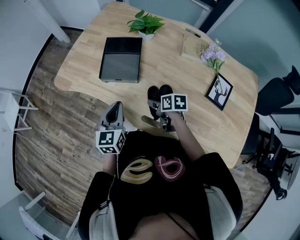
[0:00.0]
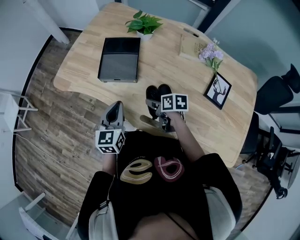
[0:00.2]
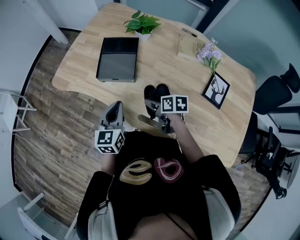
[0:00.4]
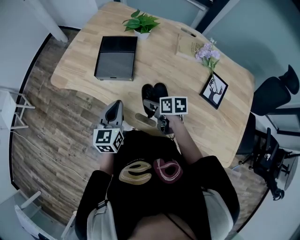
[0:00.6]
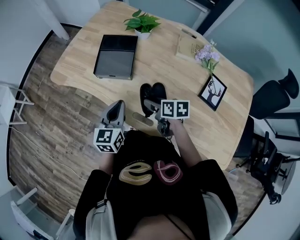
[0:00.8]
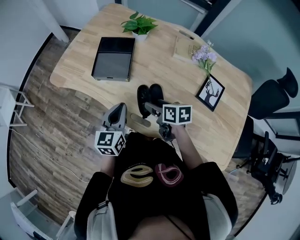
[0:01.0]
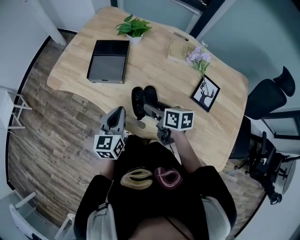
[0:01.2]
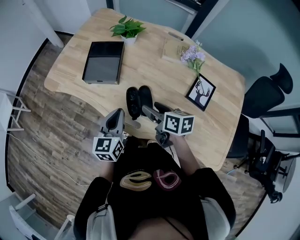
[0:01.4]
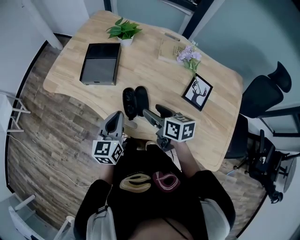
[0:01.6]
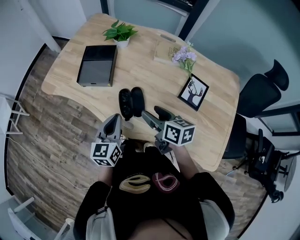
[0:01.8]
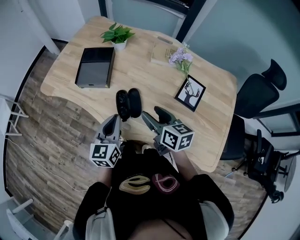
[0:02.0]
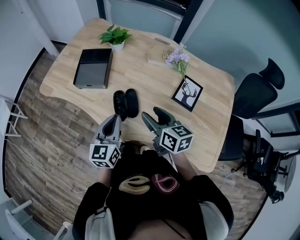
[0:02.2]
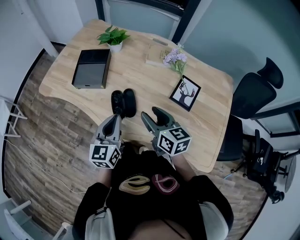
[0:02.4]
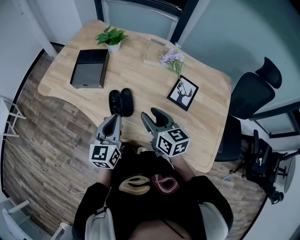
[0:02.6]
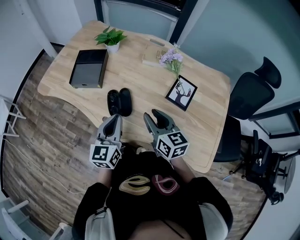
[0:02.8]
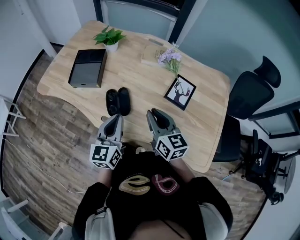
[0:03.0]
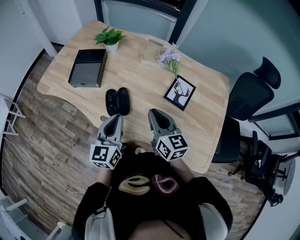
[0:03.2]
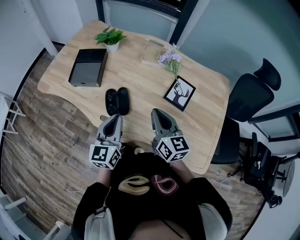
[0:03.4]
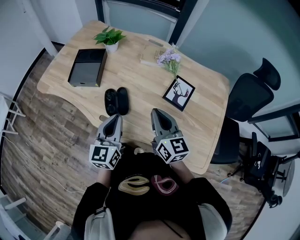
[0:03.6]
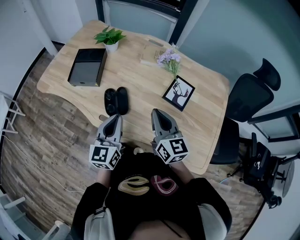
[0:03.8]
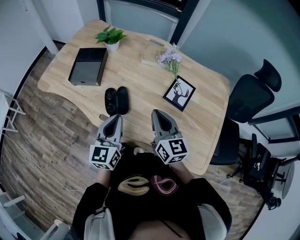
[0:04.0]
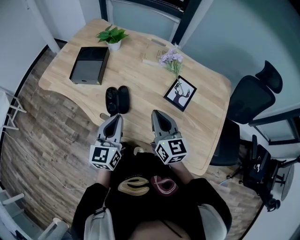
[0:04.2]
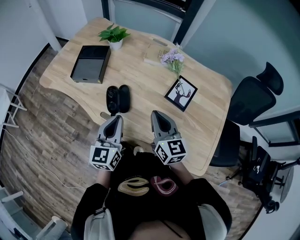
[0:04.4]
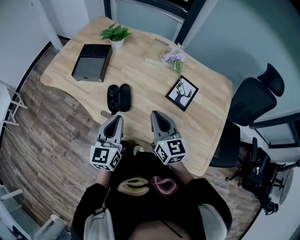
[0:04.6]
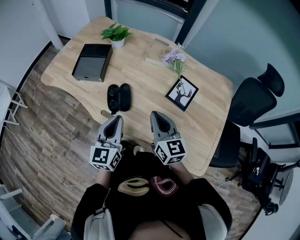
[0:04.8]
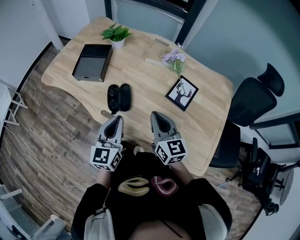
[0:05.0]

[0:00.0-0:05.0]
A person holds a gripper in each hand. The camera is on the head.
0:00.0 to 0:01.6: The right gripper is displaced upward, backward and to the right by roughly 20 cm, and swivels roughly 30 degrees, while the left gripper goes some 15 cm to the right and backward.
0:01.6 to 0:03.4: The right gripper travels to the right, upward and backward by approximately 15 cm, changes its angle by some 30 degrees, and closes, while the left gripper goes approximately 10 cm to the right and backward.
0:03.4 to 0:05.0: The grippers make only small movements.

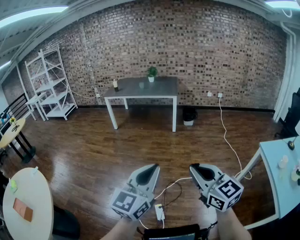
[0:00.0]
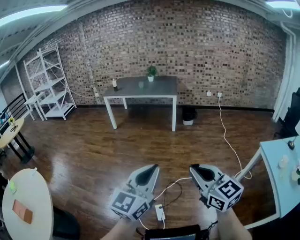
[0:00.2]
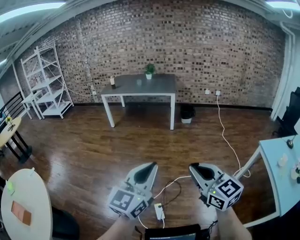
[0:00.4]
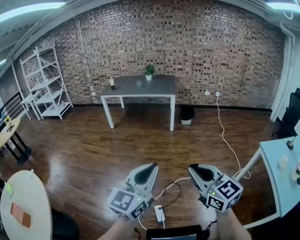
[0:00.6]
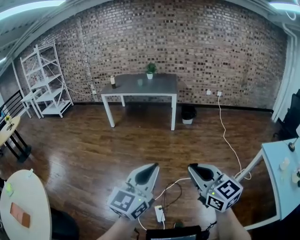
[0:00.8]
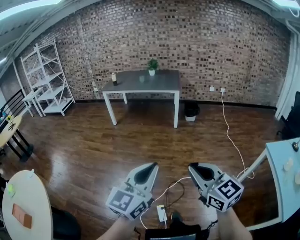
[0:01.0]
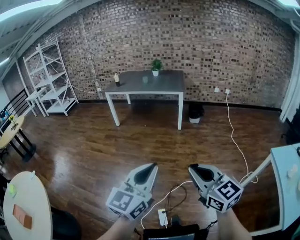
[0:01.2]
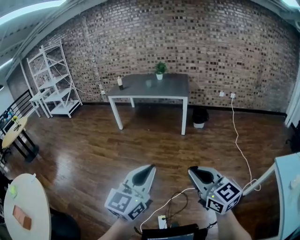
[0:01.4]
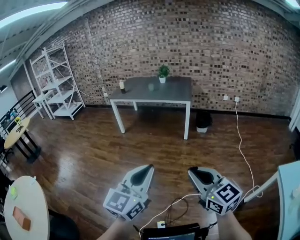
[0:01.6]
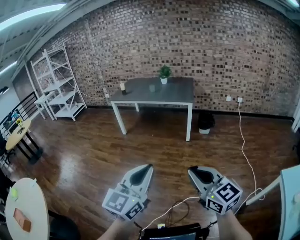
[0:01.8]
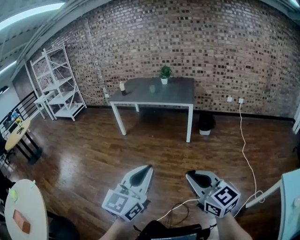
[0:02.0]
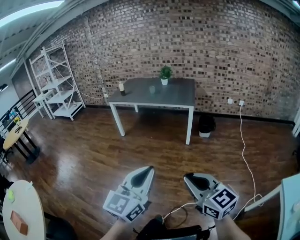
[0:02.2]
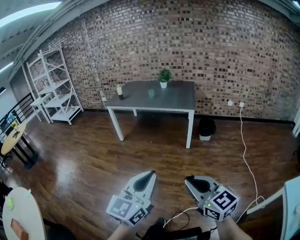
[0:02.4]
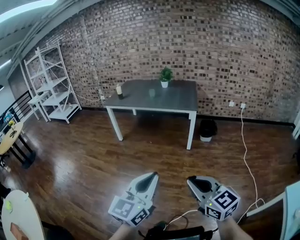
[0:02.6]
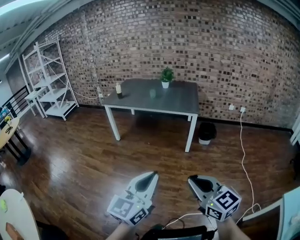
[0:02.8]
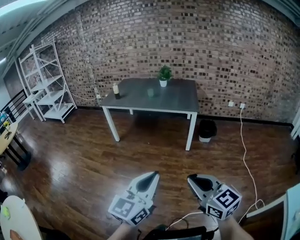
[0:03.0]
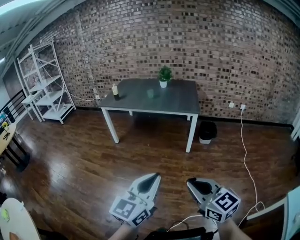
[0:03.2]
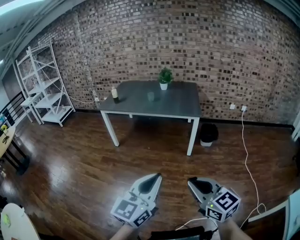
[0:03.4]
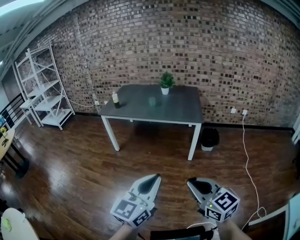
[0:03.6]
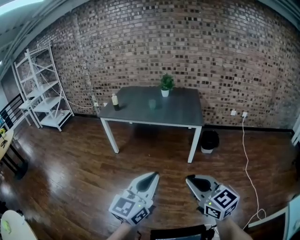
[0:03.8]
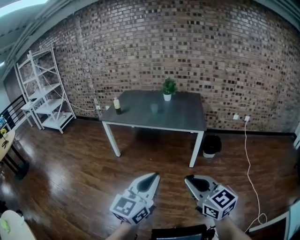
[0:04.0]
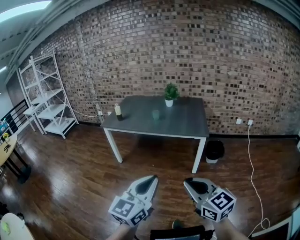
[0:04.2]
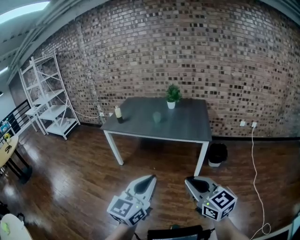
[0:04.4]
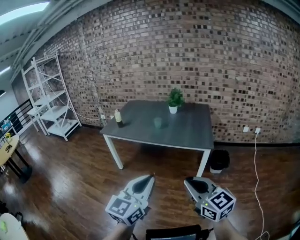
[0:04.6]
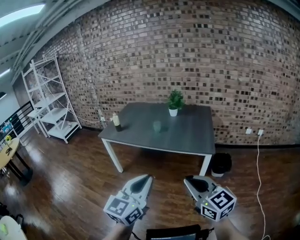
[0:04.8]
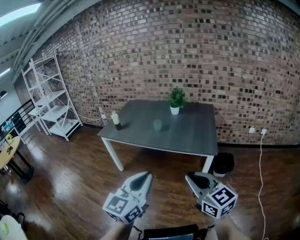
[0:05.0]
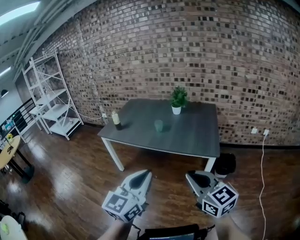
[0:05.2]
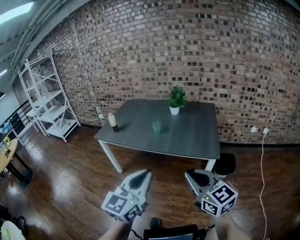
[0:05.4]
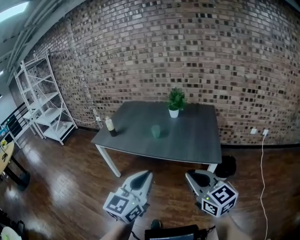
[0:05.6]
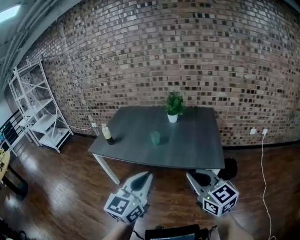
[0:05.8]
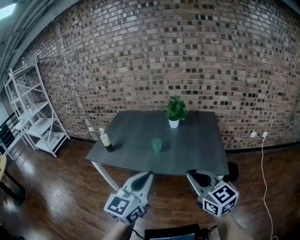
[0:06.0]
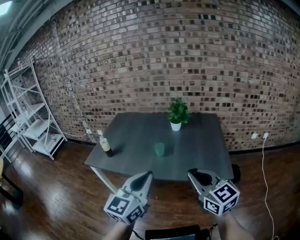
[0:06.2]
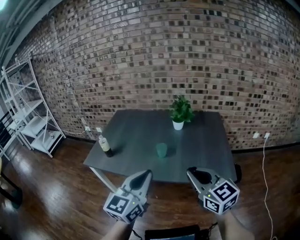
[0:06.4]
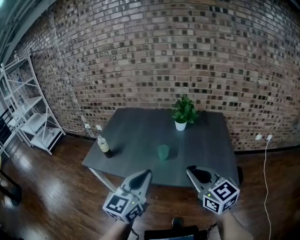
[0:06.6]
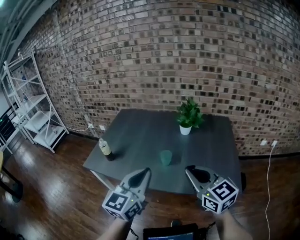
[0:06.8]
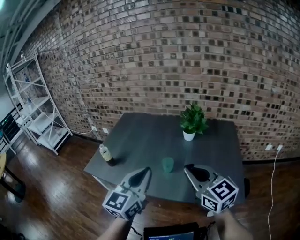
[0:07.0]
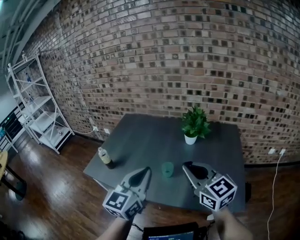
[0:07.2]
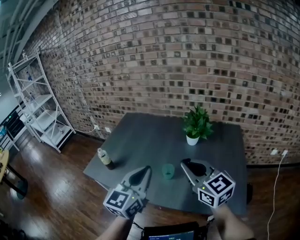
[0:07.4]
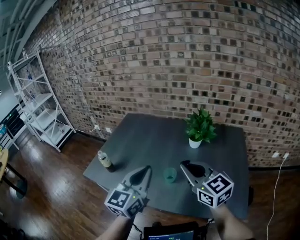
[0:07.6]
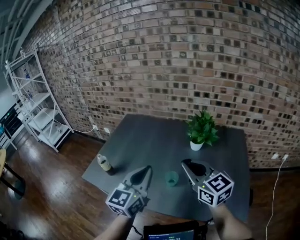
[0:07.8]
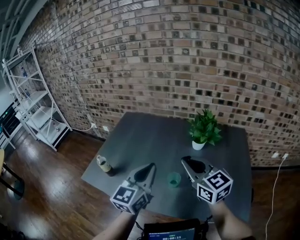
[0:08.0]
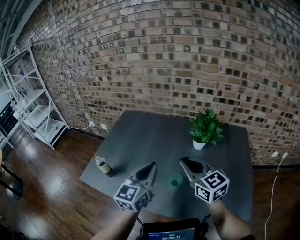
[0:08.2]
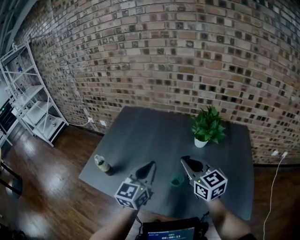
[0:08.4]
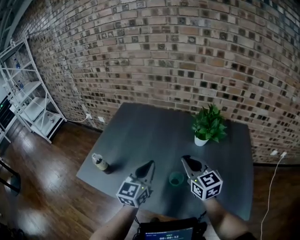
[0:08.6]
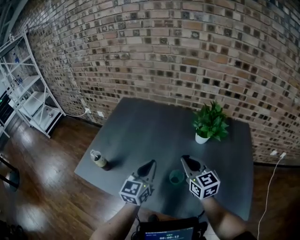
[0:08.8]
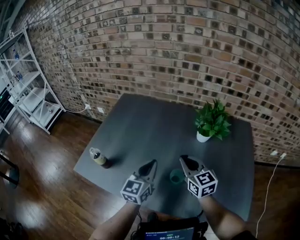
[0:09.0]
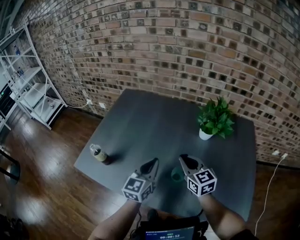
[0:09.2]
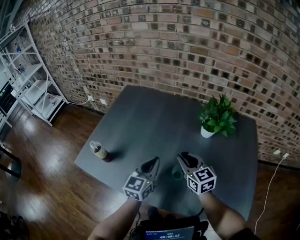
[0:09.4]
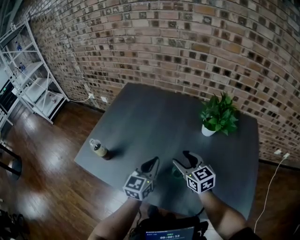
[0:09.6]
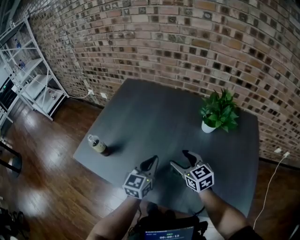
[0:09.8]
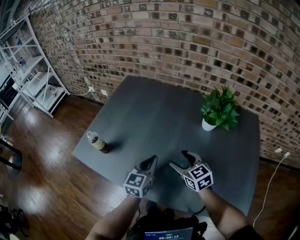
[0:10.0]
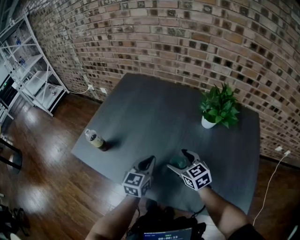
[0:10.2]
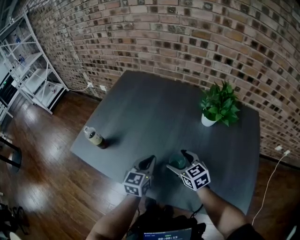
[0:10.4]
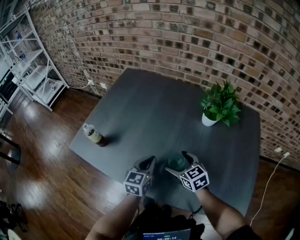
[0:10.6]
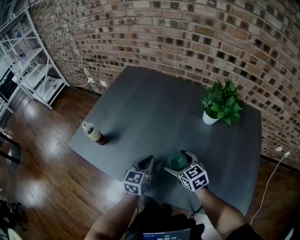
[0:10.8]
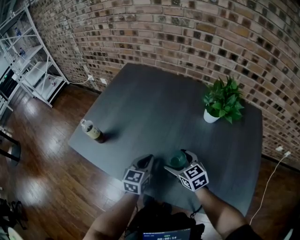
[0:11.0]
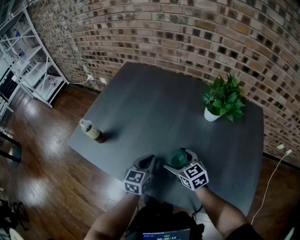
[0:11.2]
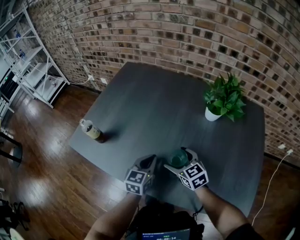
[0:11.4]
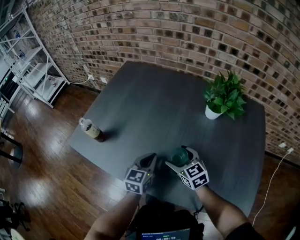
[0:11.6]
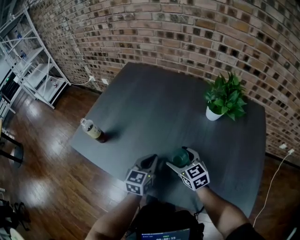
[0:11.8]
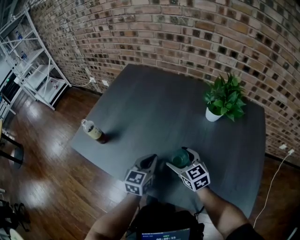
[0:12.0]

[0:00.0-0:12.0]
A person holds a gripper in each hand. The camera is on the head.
0:00.0 to 0:01.6: Both grippers travel together forward, some 25 cm.
0:01.6 to 0:03.0: The grippers both shift forward by approximately 25 cm.
0:03.0 to 0:04.4: Both grippers move forward, roughly 25 cm.
0:04.4 to 0:06.0: Both grippers are carried forward, some 40 cm.
0:06.0 to 0:07.6: The grippers both shift forward by roughly 35 cm.
0:07.6 to 0:09.0: Both grippers travel together downward and forward, approximately 20 cm.
0:09.0 to 0:10.4: Both grippers move downward, some 10 cm. The right gripper rotates roughly 20 degrees, and opens up.
0:10.4 to 0:12.0: The grippers move only a little.

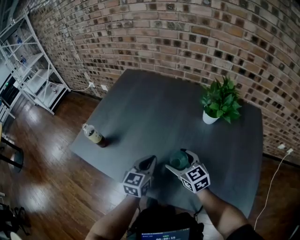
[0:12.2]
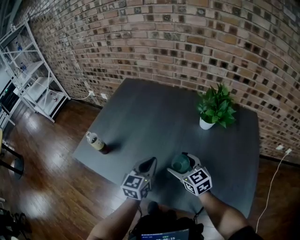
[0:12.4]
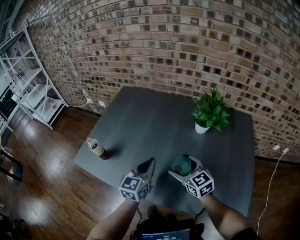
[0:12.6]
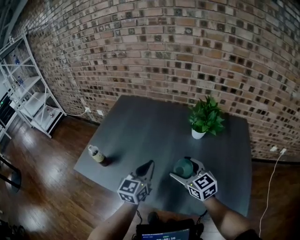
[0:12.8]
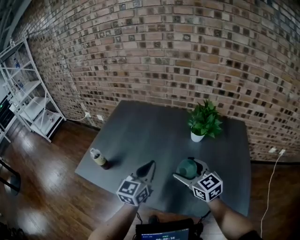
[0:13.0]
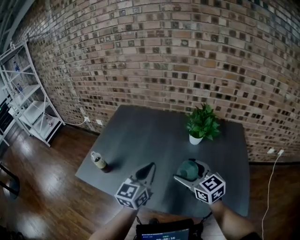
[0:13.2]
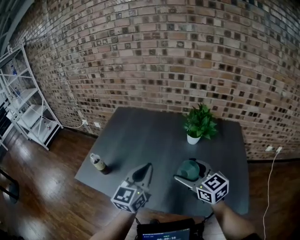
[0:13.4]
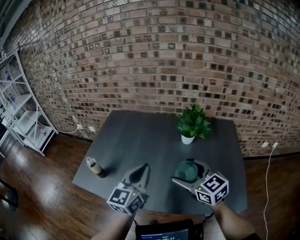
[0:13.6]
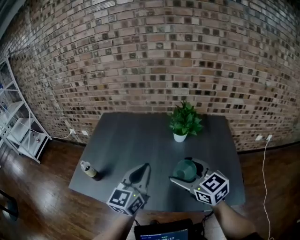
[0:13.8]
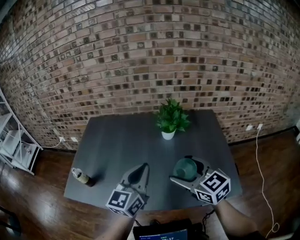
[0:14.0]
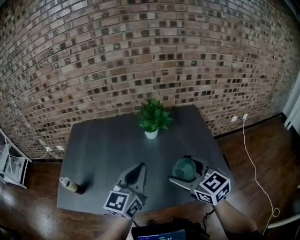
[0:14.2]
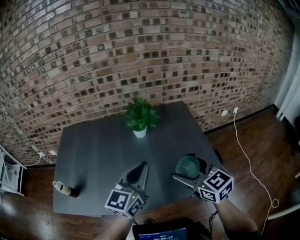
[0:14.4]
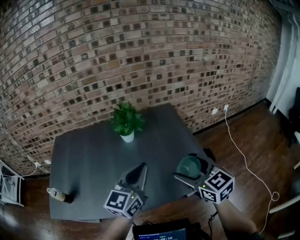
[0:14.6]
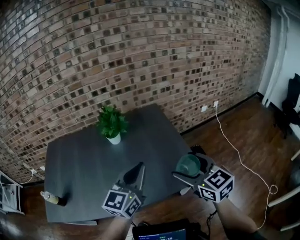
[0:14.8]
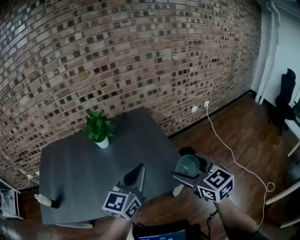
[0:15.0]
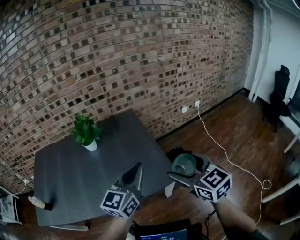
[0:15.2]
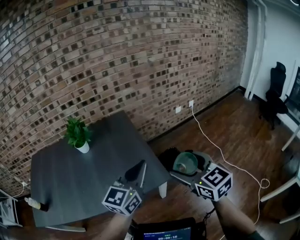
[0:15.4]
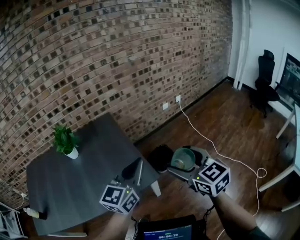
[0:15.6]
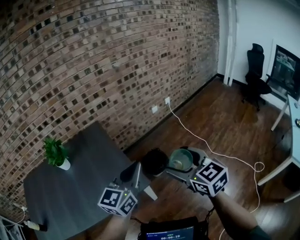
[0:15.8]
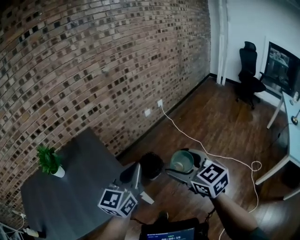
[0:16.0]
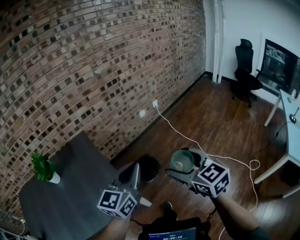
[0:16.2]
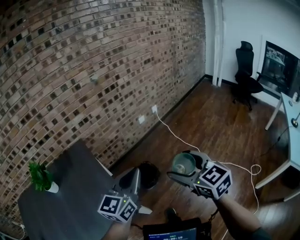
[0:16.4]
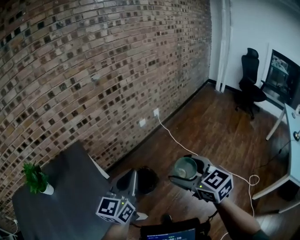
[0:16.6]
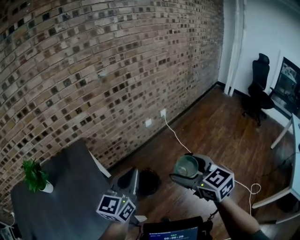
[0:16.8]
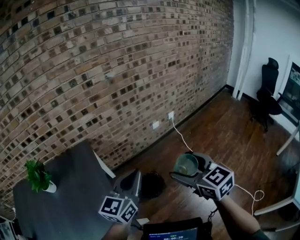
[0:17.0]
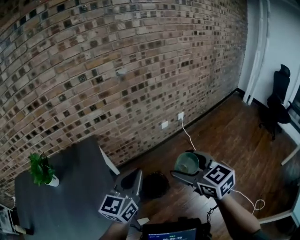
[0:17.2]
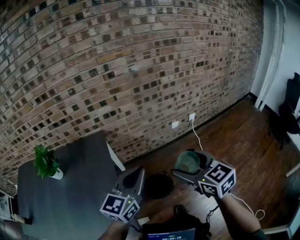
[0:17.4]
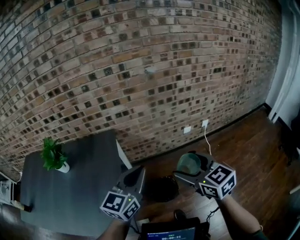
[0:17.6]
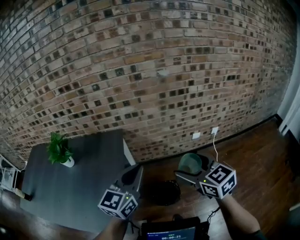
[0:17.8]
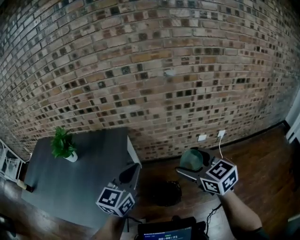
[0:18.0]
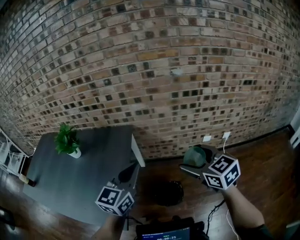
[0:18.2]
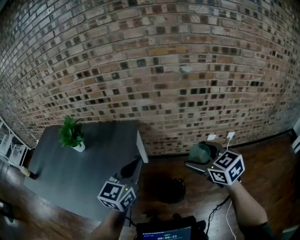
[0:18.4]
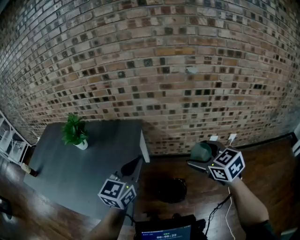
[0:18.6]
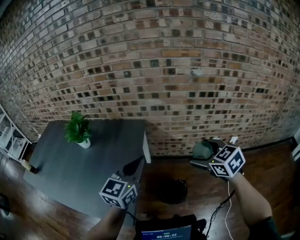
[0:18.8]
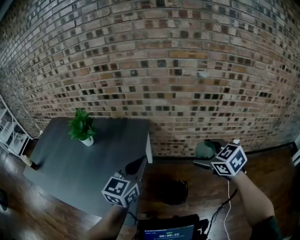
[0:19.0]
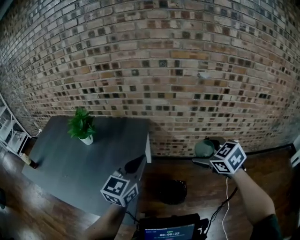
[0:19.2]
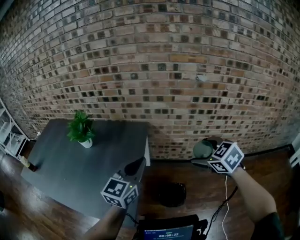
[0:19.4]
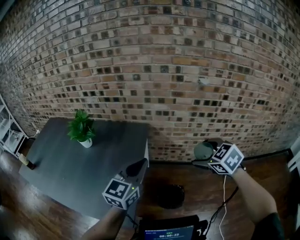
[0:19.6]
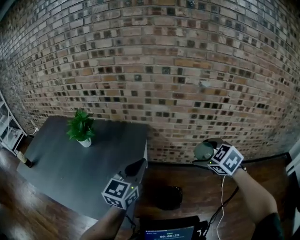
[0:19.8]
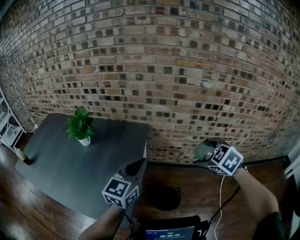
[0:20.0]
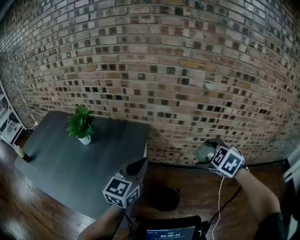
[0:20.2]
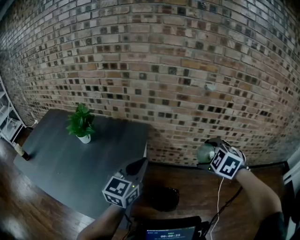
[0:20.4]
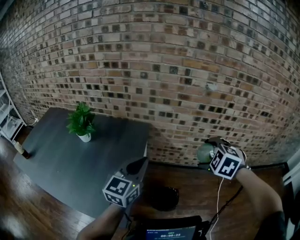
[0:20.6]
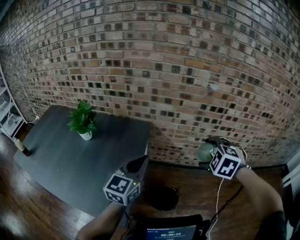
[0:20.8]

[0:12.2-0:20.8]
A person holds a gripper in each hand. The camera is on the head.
0:12.2 to 0:13.6: Both grippers move upward, roughly 20 cm. The left gripper rotates about 20 degrees.
0:13.6 to 0:15.0: The left gripper shifts by approximately 35 cm, and changes its angle by roughly 40 degrees. The right gripper changes place by some 40 cm, and turns by about 40 degrees.
0:15.0 to 0:16.6: The pair of grippers is taken to the right and forward, approximately 40 cm.
0:16.6 to 0:18.0: The left gripper shifts by some 20 cm, and swivels about 40 degrees. The right gripper changes place by some 30 cm, and swivels some 40 degrees.
0:18.0 to 0:19.4: The left gripper goes roughly 10 cm to the left. Meanwhile the right gripper travels forward by roughly 5 cm, and swivels about 30 degrees.
0:19.4 to 0:20.8: The right gripper swivels approximately 40 degrees.
